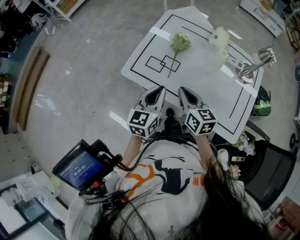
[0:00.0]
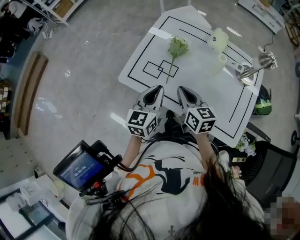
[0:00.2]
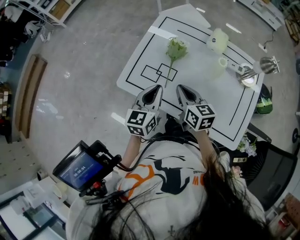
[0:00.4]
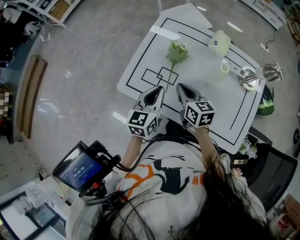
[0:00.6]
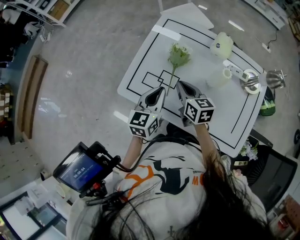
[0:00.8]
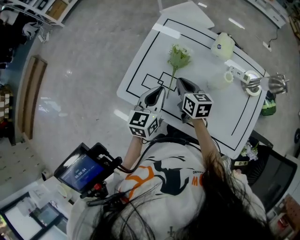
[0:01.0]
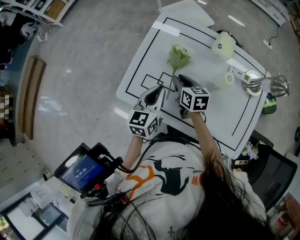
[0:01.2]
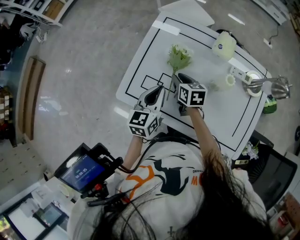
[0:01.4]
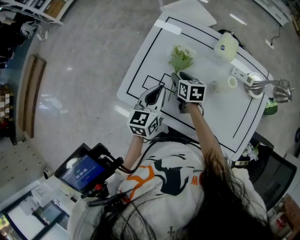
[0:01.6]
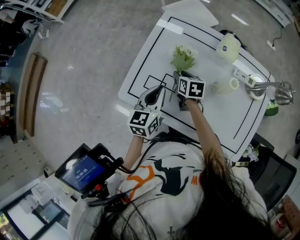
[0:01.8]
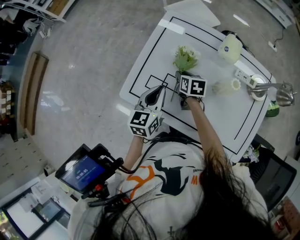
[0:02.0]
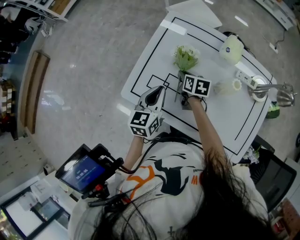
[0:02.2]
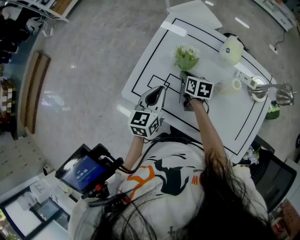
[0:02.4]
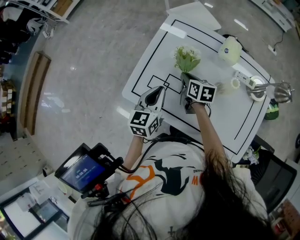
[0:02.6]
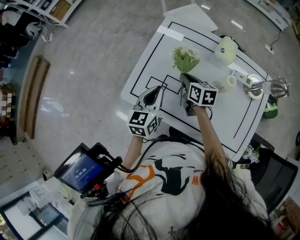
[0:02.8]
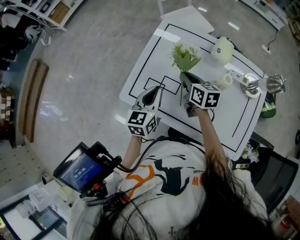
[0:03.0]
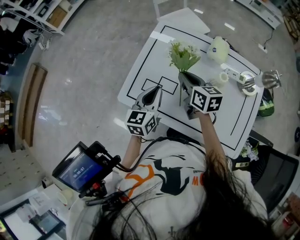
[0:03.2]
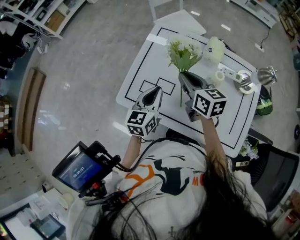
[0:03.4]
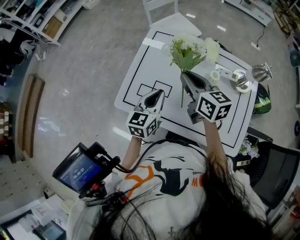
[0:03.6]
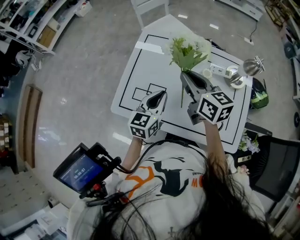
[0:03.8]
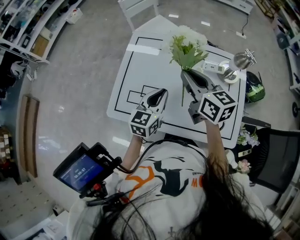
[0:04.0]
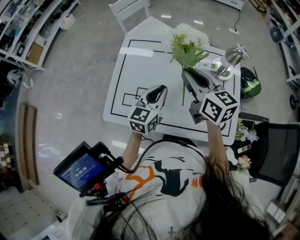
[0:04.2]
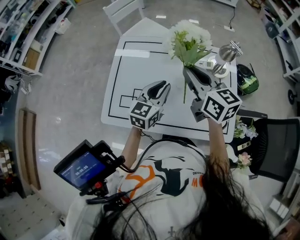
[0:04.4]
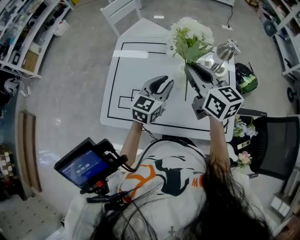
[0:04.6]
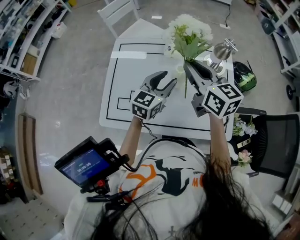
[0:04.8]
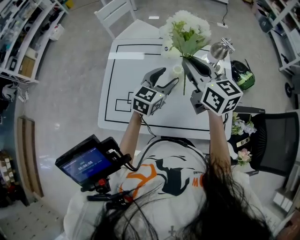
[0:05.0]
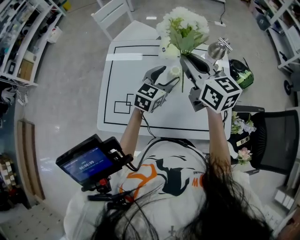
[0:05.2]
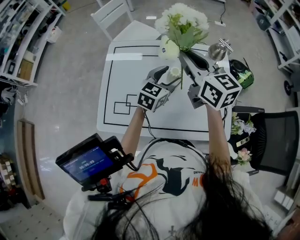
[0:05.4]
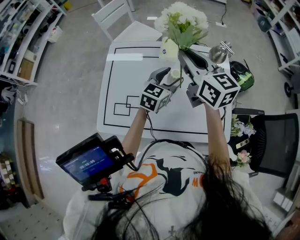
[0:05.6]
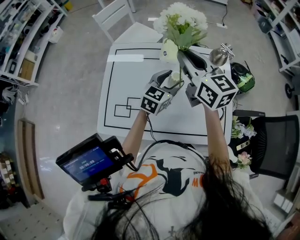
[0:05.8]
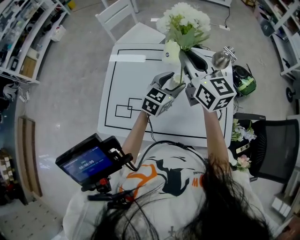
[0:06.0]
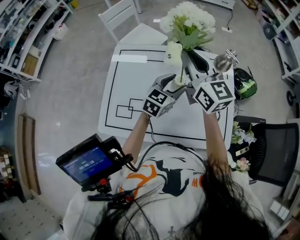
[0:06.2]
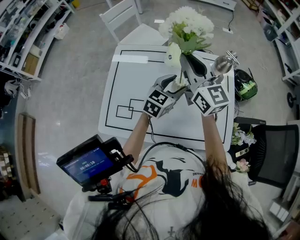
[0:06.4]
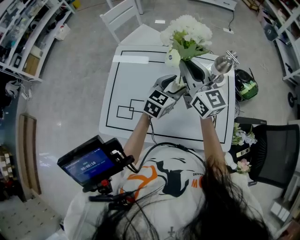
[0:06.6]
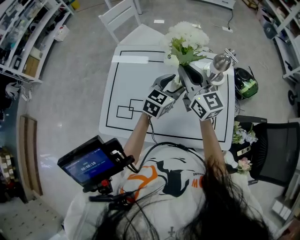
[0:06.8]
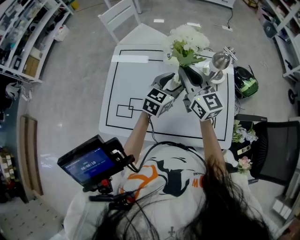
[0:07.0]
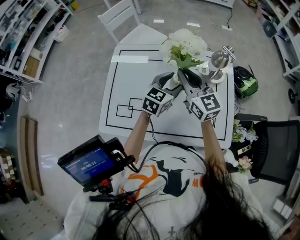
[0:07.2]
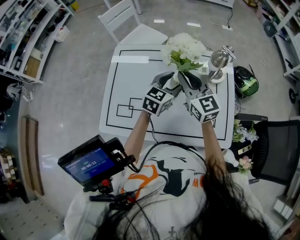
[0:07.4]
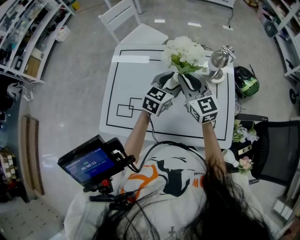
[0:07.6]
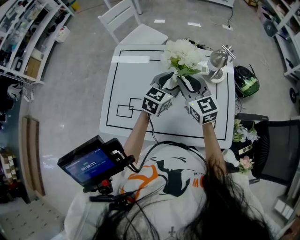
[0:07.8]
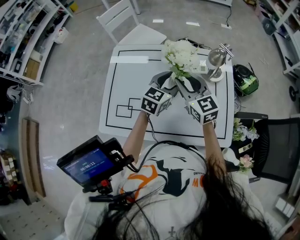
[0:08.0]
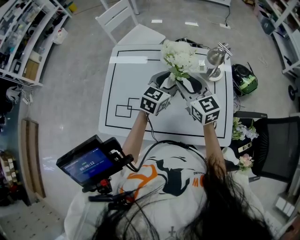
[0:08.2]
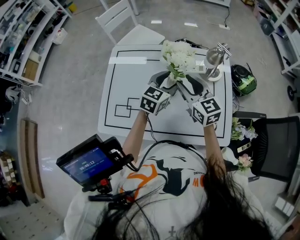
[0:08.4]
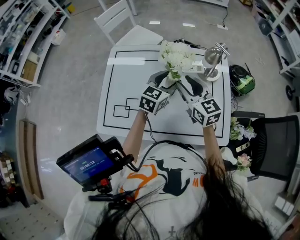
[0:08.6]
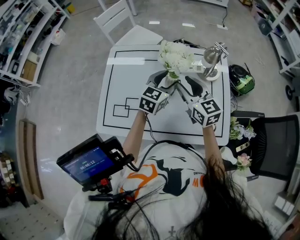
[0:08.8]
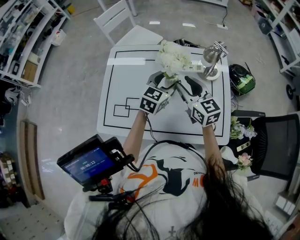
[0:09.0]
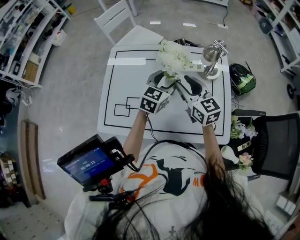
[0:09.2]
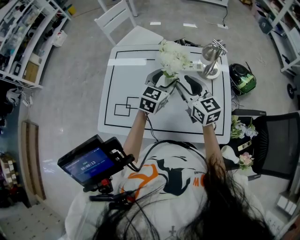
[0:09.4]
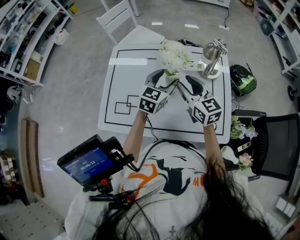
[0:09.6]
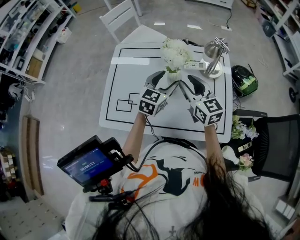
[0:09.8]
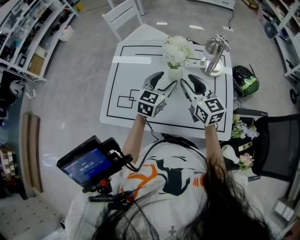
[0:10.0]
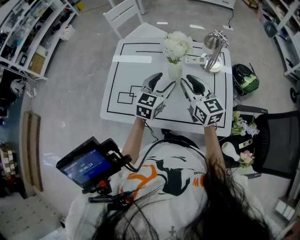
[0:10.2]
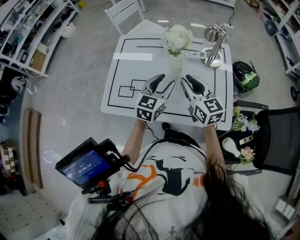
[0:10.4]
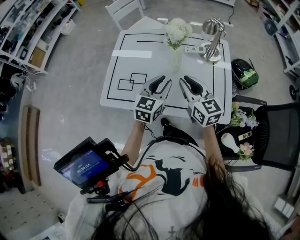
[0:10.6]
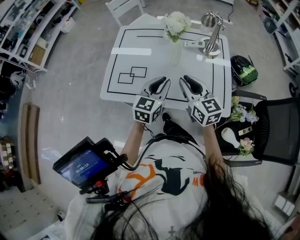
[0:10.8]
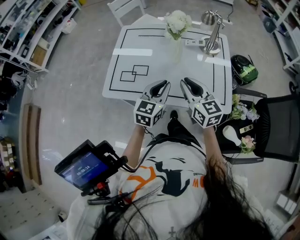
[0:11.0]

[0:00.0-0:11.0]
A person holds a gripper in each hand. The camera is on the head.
0:00.0 to 0:01.6: The right gripper travels forward and downward by approximately 25 cm, changes its angle by some 20 degrees, and opens up. The left gripper heads forward, covering approximately 15 cm.
0:01.6 to 0:03.2: The right gripper shifts roughly 15 cm upward, and closes its fingers.
0:03.2 to 0:04.8: The right gripper is displaced upward by about 15 cm, and changes its angle by about 20 degrees. The left gripper ends up about 20 cm from where it was, swivels some 40 degrees, and opens up.
0:04.8 to 0:06.2: The left gripper heads to the right, covering approximately 5 cm; the right gripper moves forward, approximately 5 cm.
0:06.2 to 0:07.8: The right gripper travels downward by approximately 10 cm.
0:07.8 to 0:09.4: The right gripper opens its fingers.
0:09.4 to 0:11.0: The two grippers go roughly 20 cm backward. The right gripper closes; the left gripper closes.

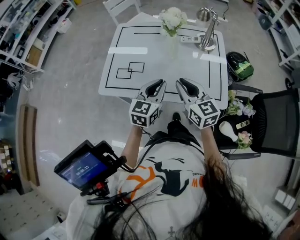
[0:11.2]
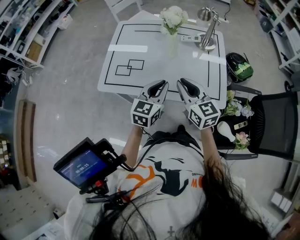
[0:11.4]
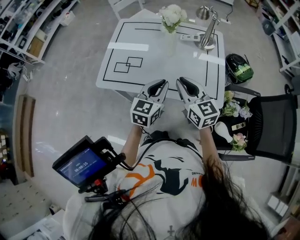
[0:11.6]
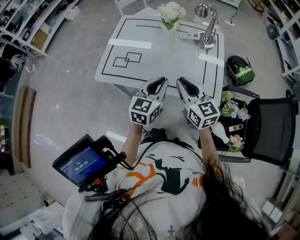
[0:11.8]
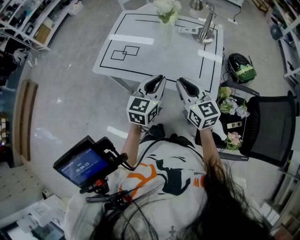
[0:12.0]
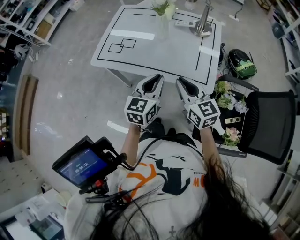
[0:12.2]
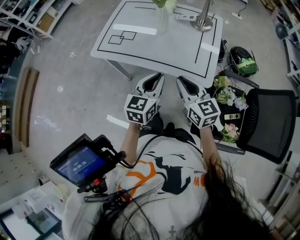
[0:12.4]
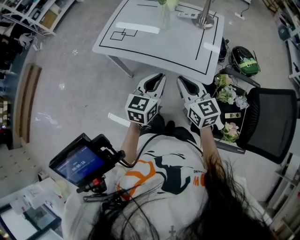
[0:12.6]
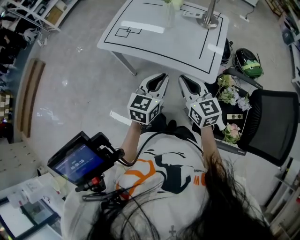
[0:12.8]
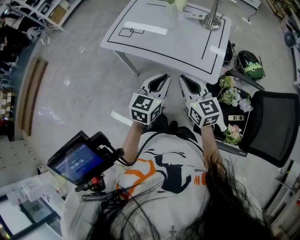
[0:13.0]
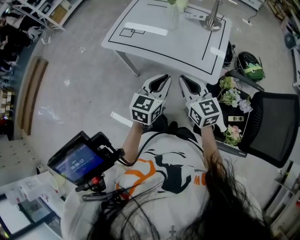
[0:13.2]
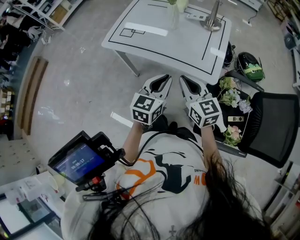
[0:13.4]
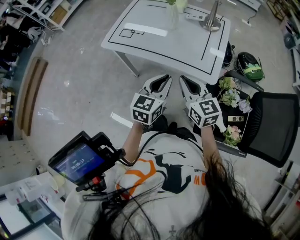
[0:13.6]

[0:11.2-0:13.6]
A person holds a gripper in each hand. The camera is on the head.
0:11.2 to 0:12.4: The two grippers go roughly 15 cm backward and to the right.
0:12.4 to 0:13.6: The left gripper goes roughly 5 cm backward.

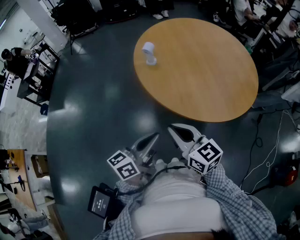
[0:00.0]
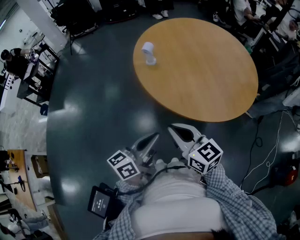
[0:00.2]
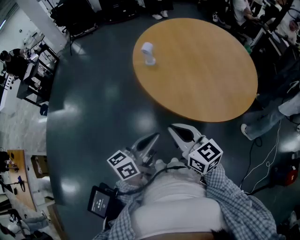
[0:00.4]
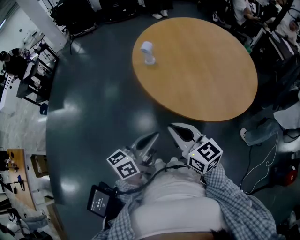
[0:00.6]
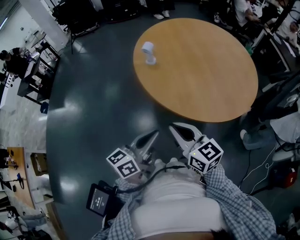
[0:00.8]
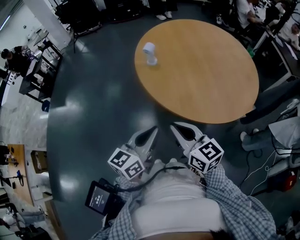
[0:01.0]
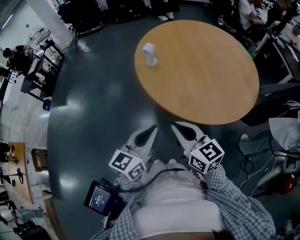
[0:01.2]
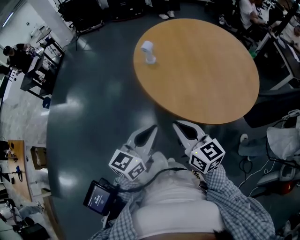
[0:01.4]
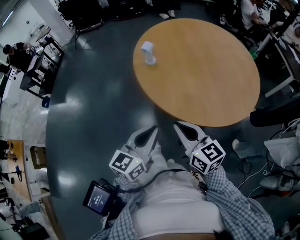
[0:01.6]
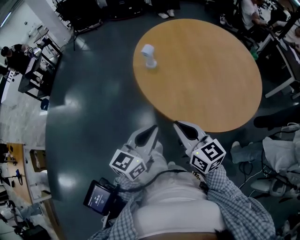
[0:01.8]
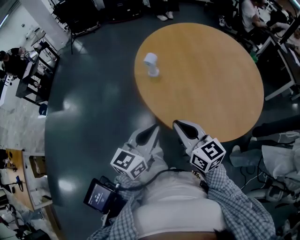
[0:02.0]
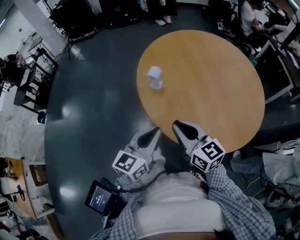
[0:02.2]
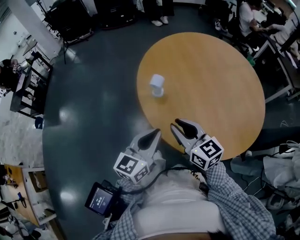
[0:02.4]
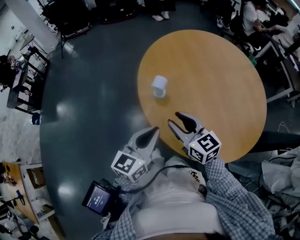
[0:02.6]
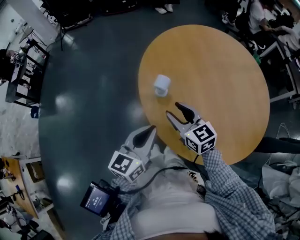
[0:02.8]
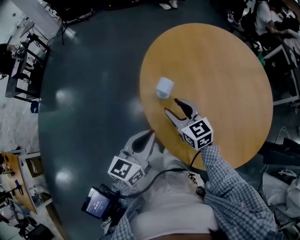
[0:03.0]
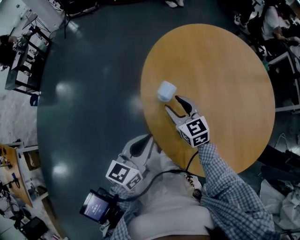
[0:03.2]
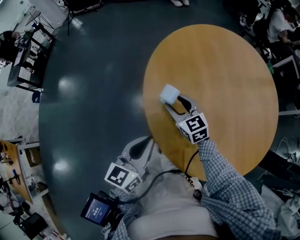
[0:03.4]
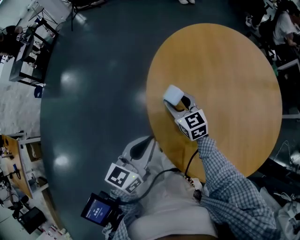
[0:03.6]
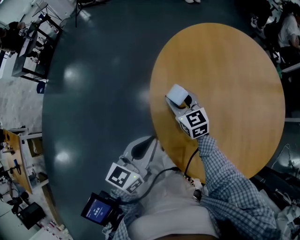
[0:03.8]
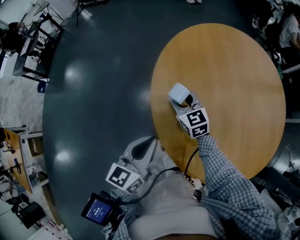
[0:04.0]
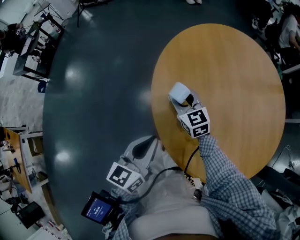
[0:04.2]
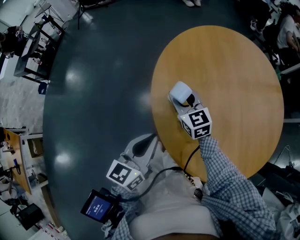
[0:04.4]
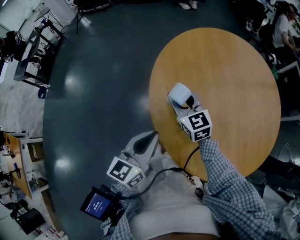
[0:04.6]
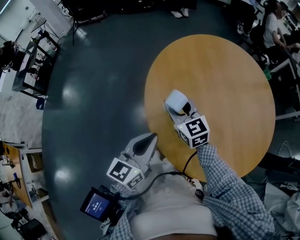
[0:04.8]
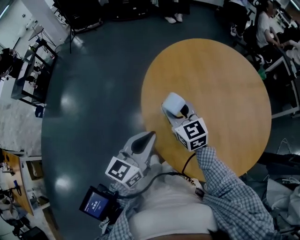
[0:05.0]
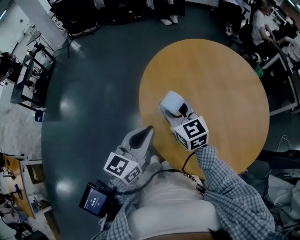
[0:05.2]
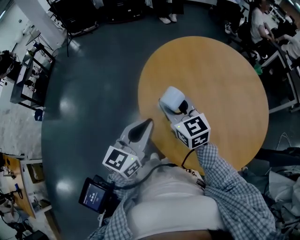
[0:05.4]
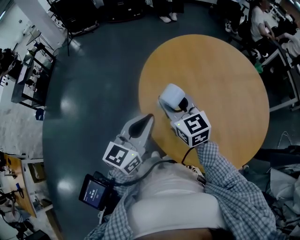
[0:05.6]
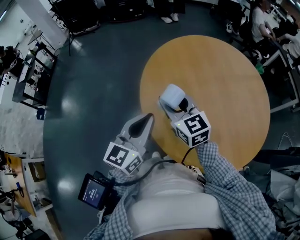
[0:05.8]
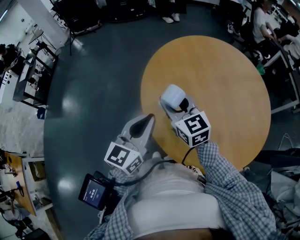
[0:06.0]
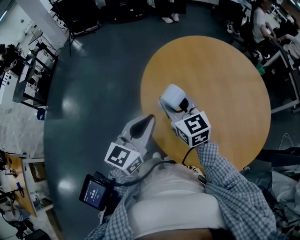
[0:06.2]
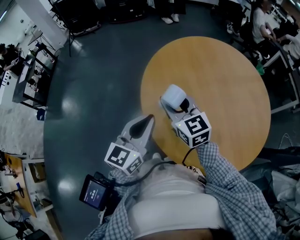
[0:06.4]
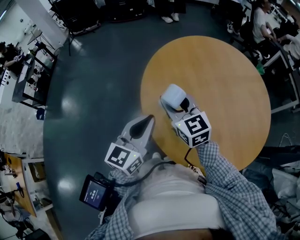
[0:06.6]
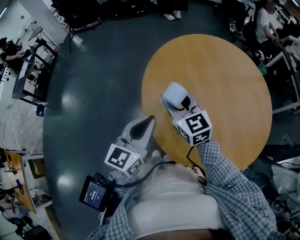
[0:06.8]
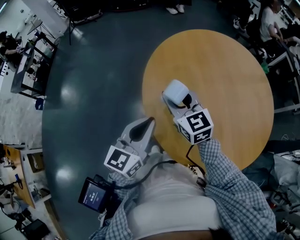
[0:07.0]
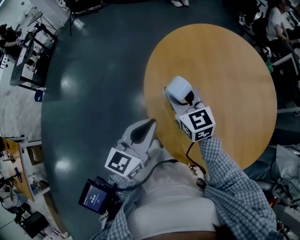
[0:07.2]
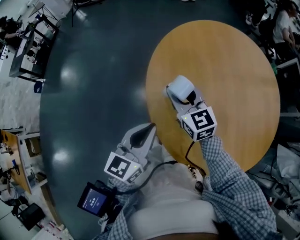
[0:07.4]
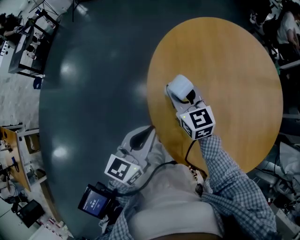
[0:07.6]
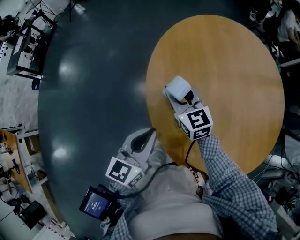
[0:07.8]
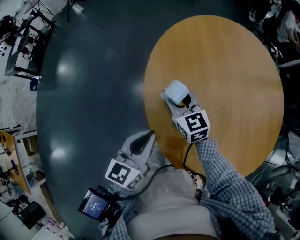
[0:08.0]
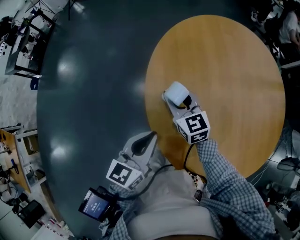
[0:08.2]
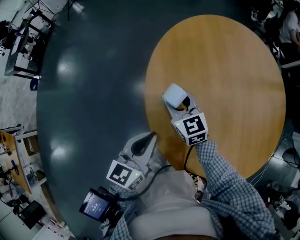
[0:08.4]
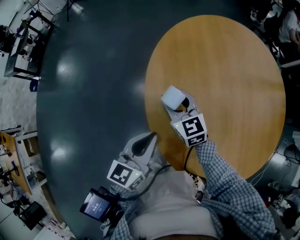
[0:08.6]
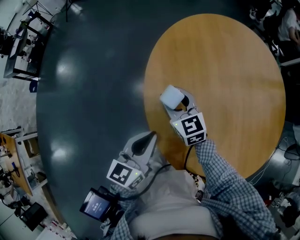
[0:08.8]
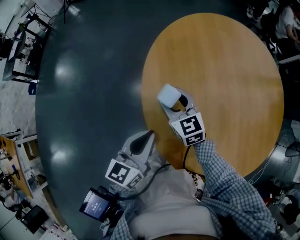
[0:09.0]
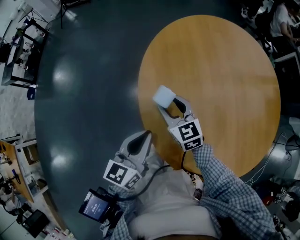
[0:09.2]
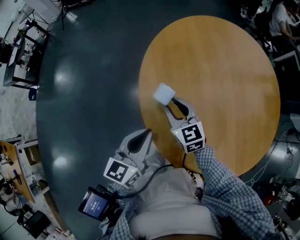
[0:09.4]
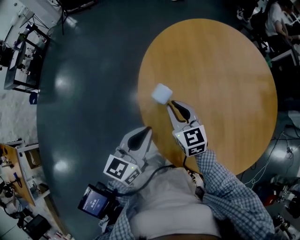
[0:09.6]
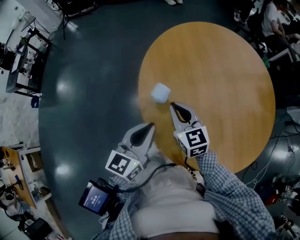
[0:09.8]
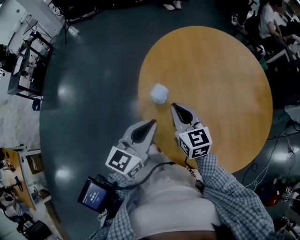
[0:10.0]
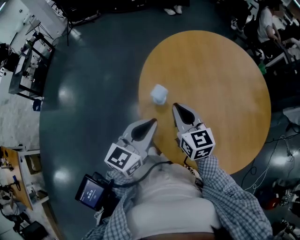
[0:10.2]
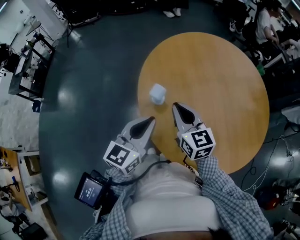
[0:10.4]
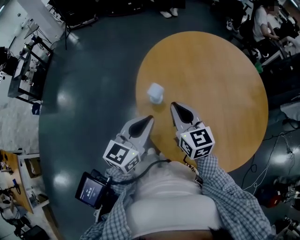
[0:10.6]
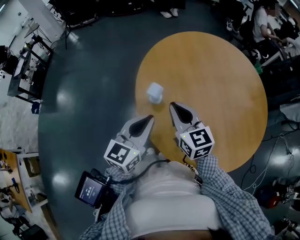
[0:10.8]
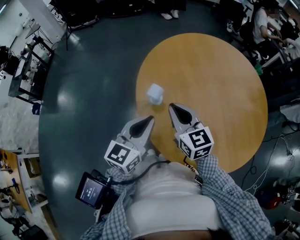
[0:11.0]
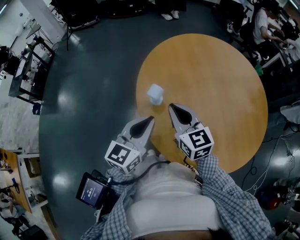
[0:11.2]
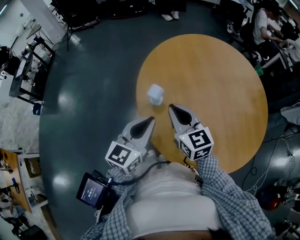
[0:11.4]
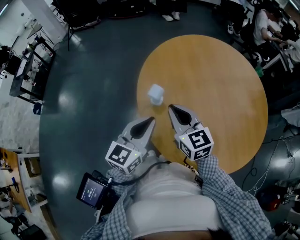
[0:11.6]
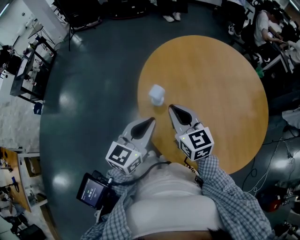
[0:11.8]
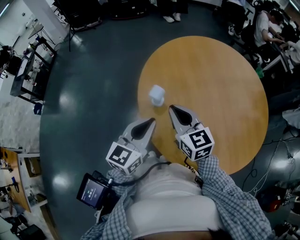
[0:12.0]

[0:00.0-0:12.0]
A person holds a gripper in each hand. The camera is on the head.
0:00.0 to 0:01.6: The left gripper changes place by about 5 cm, and swivels approximately 30 degrees. Meanwhile the right gripper goes roughly 5 cm to the right.
0:01.6 to 0:03.0: Both grippers travel together forward, approximately 30 cm. The right gripper opens up.
0:03.0 to 0:04.4: The right gripper heads forward, covering about 10 cm.
0:04.4 to 0:06.0: The left gripper goes roughly 10 cm upward, while the right gripper goes approximately 15 cm upward.
0:06.0 to 0:07.6: The grippers both shift downward by some 10 cm.
0:07.6 to 0:09.0: The right gripper is displaced downward by about 5 cm.
0:09.0 to 0:10.4: The right gripper shifts some 15 cm upward, to the right and backward, and closes. The left gripper shifts approximately 10 cm upward.
0:10.4 to 0:12.0: The grippers make only small movements.
